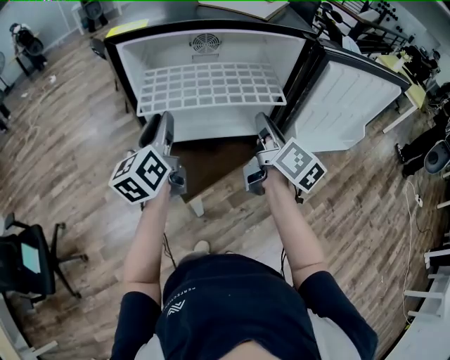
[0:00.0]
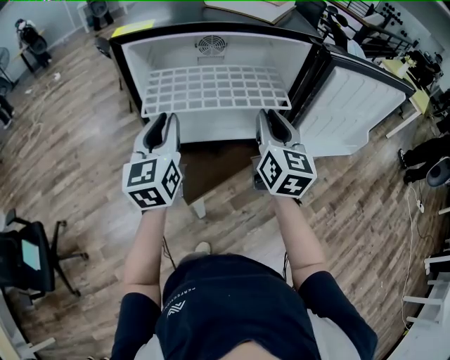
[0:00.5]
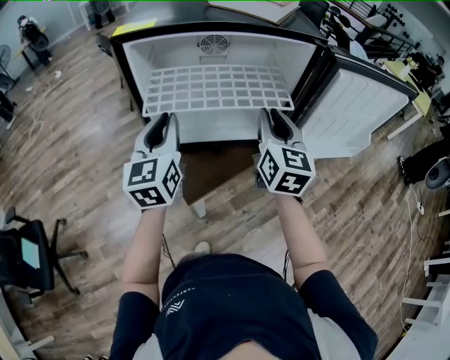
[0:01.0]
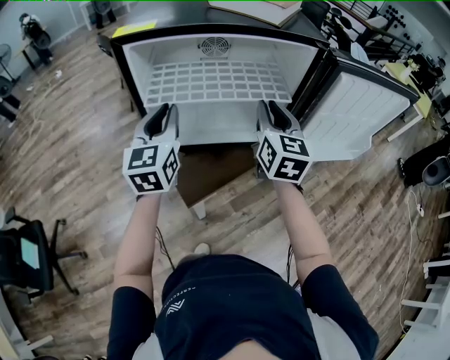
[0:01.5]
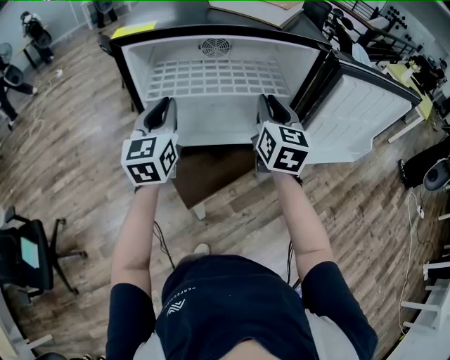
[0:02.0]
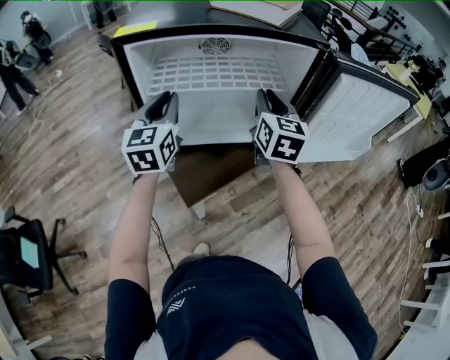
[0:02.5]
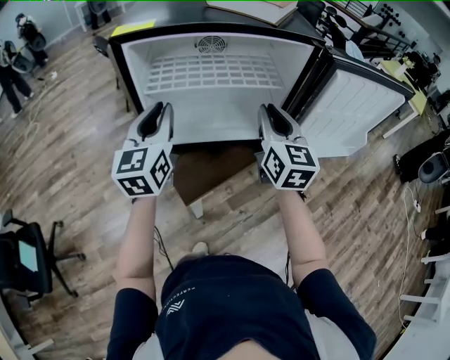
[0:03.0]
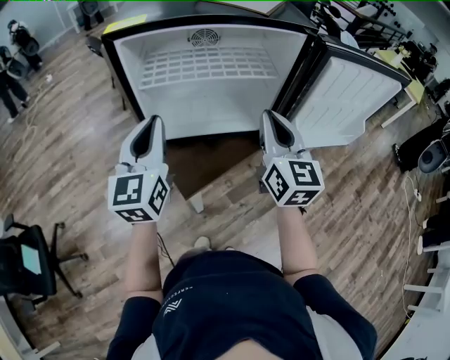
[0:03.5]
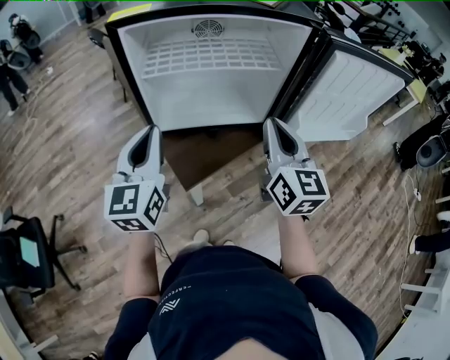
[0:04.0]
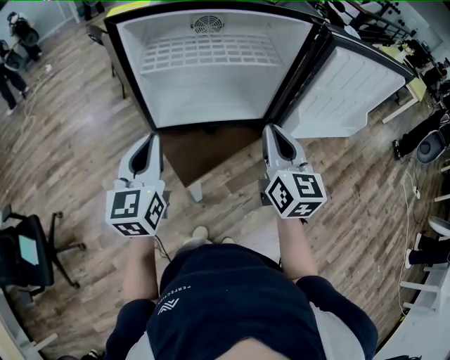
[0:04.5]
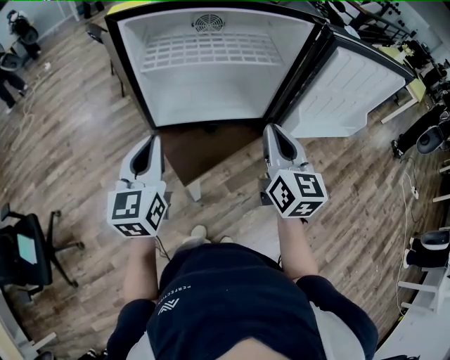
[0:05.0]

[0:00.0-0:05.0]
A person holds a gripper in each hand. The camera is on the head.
0:00.0 to 0:02.5: Both grippers travel together forward, approximately 10 cm. The right gripper rolls counterclockwise, seen from behind, by approximately 40 degrees. The left gripper swivels roughly 30 degrees.
0:02.5 to 0:05.0: The grippers both shift backward by some 15 cm.

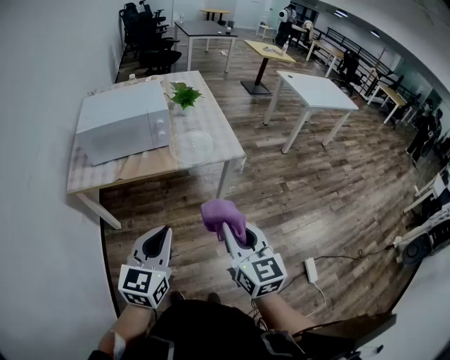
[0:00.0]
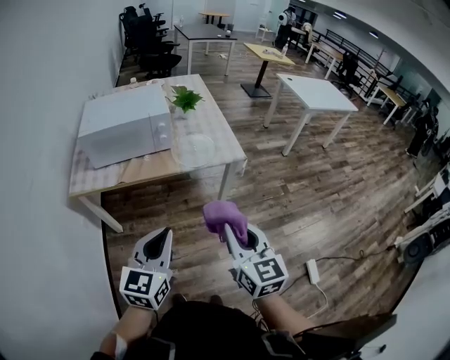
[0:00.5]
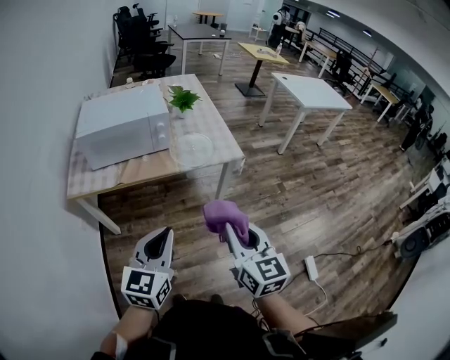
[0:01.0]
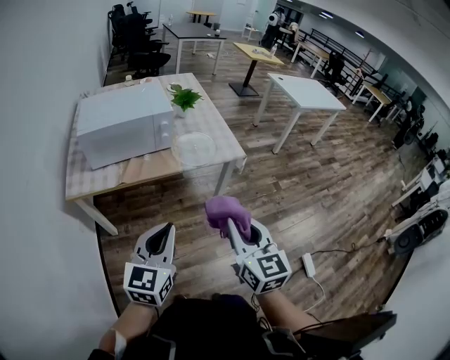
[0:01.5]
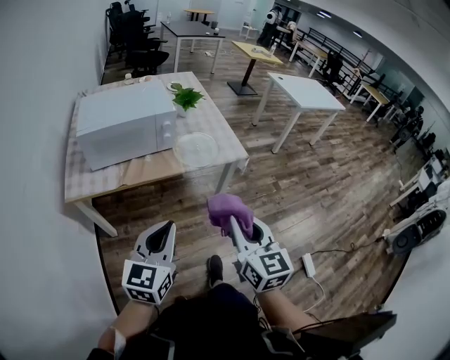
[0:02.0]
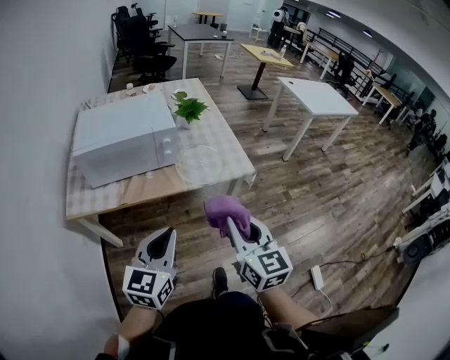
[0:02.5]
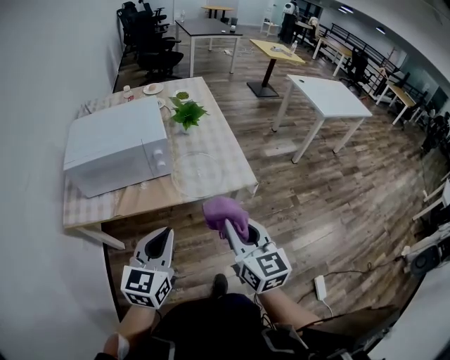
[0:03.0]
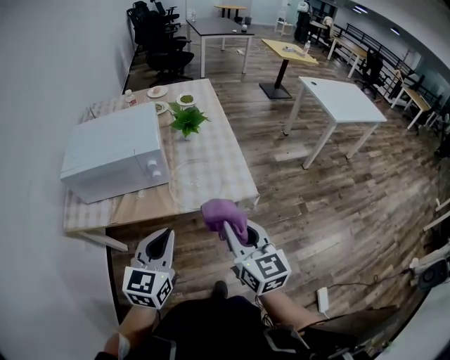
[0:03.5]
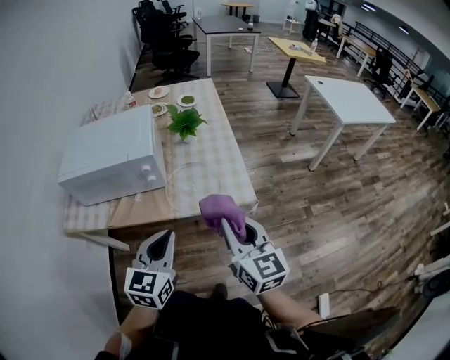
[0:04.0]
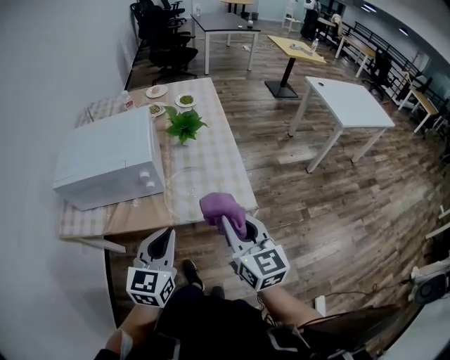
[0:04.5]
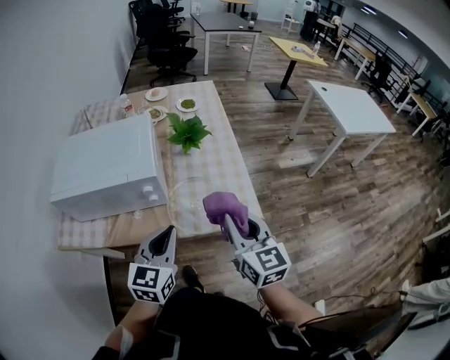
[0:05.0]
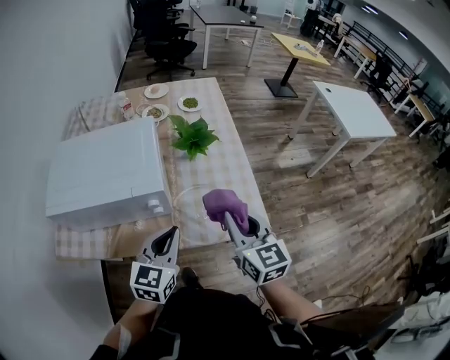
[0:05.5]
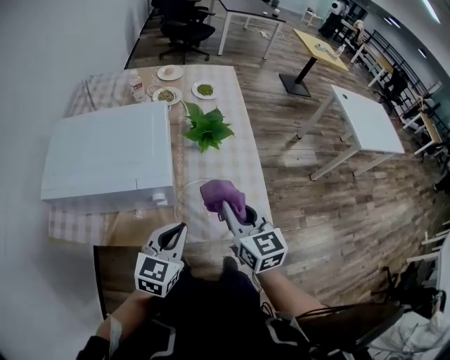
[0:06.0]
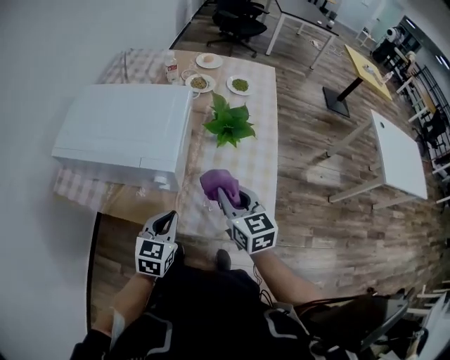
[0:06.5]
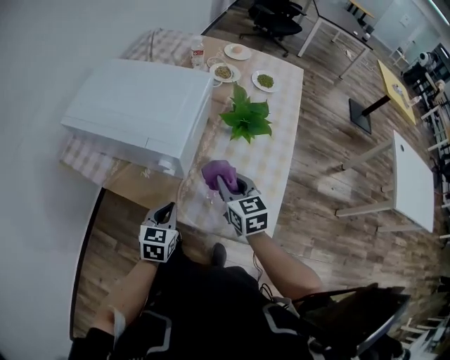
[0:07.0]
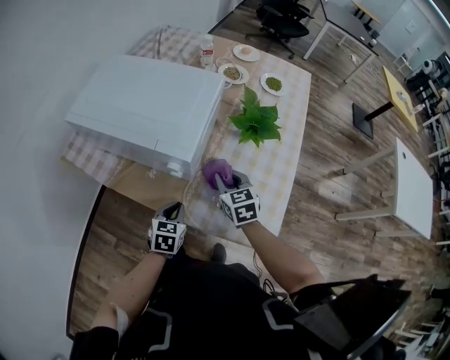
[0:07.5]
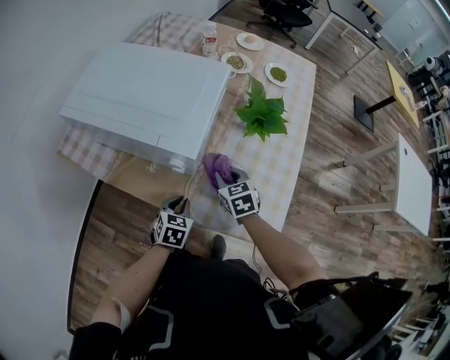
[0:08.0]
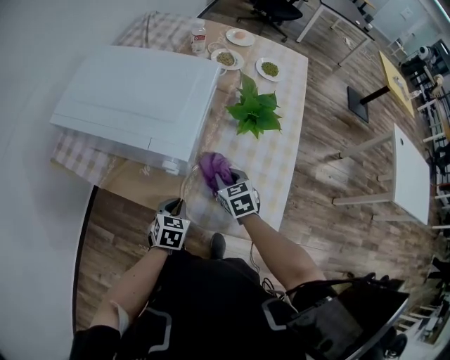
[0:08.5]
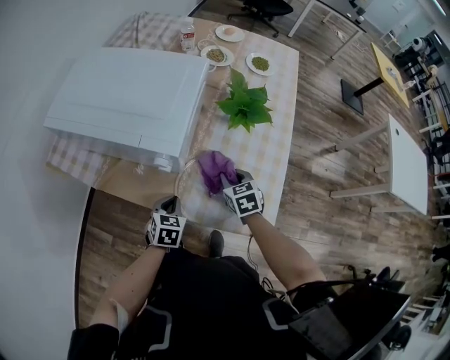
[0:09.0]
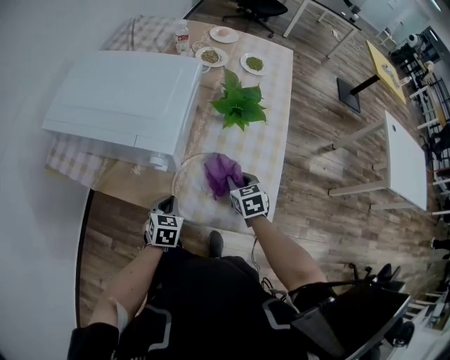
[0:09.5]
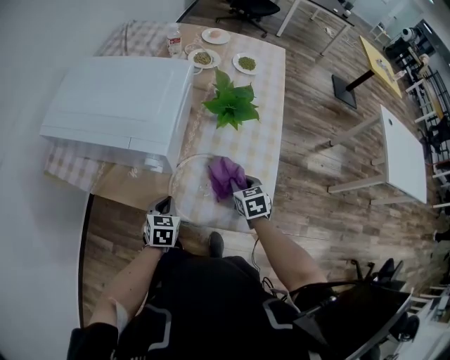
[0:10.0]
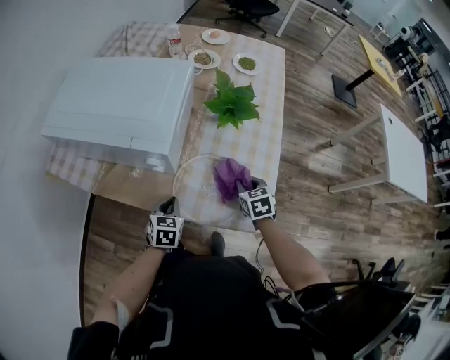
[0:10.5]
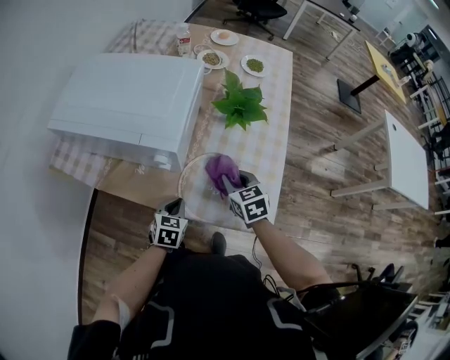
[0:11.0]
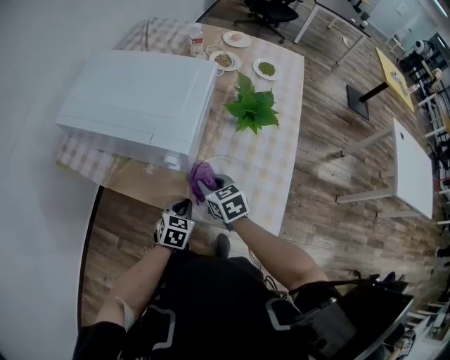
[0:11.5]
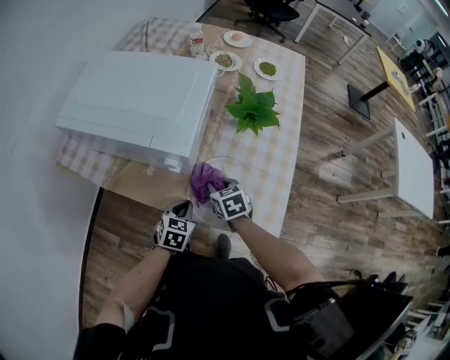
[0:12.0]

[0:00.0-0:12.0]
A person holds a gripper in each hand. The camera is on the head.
0:00.0 to 0:02.0: Both grippers move to the left, some 5 cm.
0:02.0 to 0:04.0: The grippers both shift forward and to the right by approximately 30 cm.
0:04.0 to 0:06.0: The right gripper shifts approximately 25 cm forward; the left gripper heads forward and downward, covering some 20 cm.
0:06.0 to 0:08.0: Both grippers move downward, about 20 cm. The left gripper turns by some 40 degrees, while the right gripper swivels approximately 40 degrees.
0:08.0 to 0:10.0: The right gripper moves to the right and backward, about 15 cm.
0:10.0 to 0:12.0: The right gripper goes some 15 cm to the left.

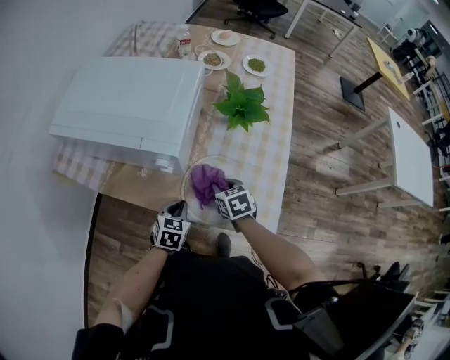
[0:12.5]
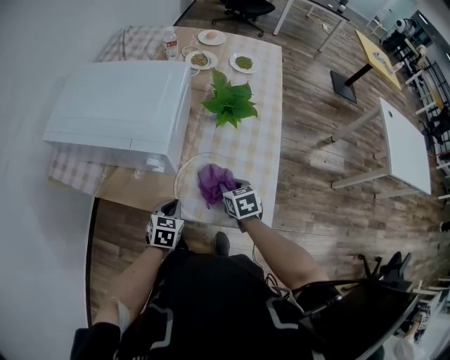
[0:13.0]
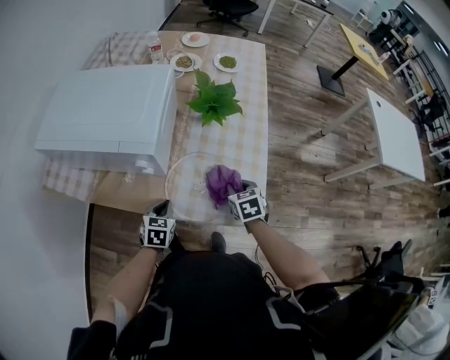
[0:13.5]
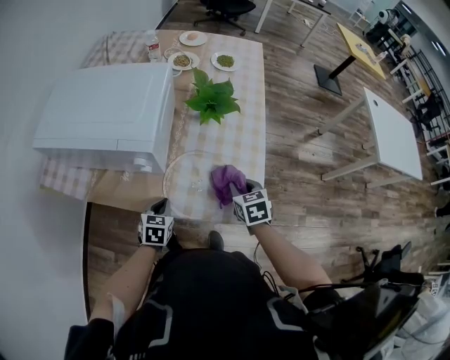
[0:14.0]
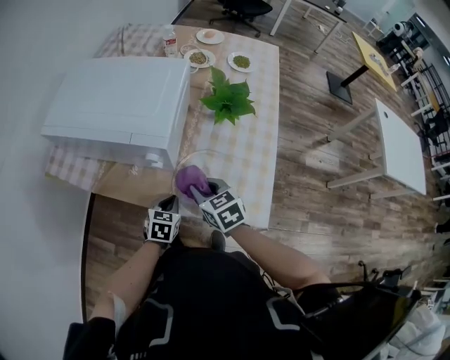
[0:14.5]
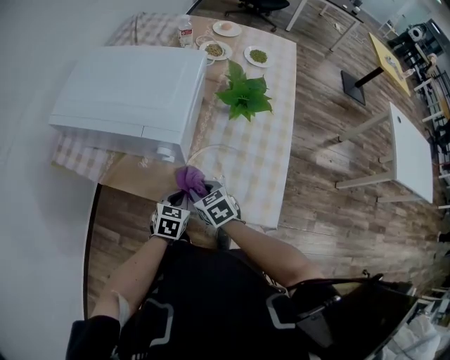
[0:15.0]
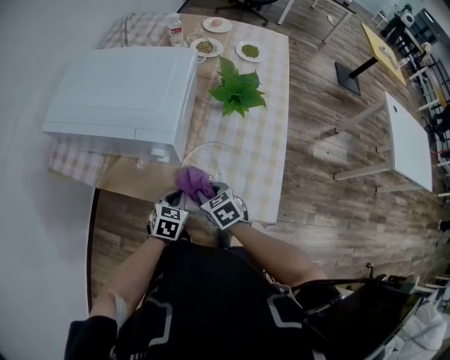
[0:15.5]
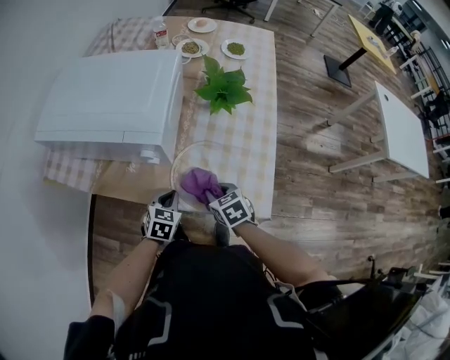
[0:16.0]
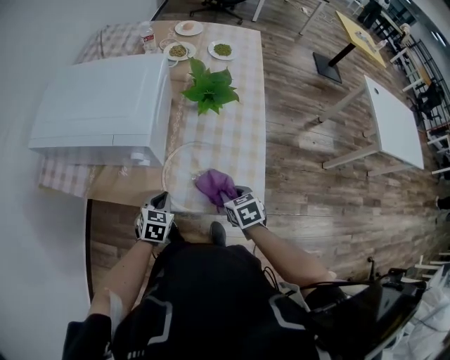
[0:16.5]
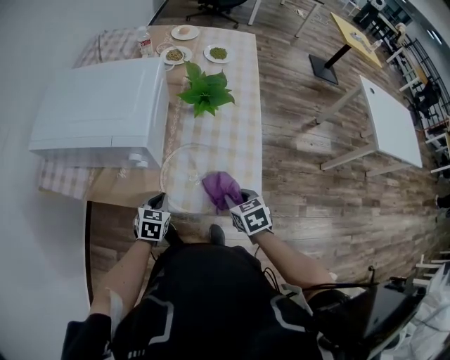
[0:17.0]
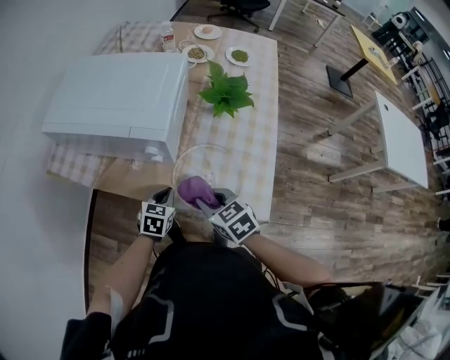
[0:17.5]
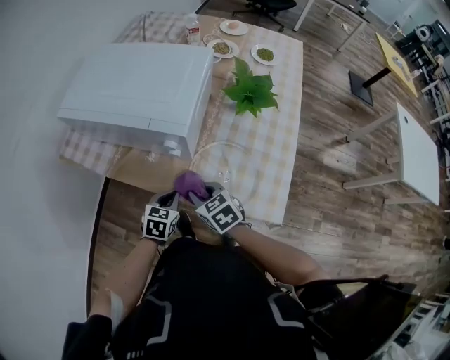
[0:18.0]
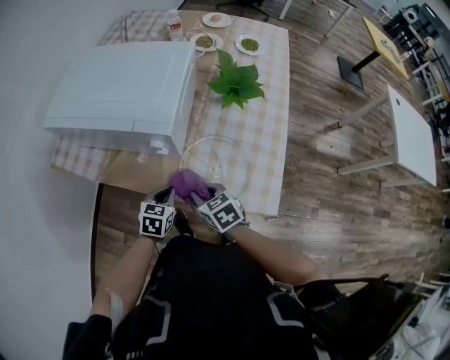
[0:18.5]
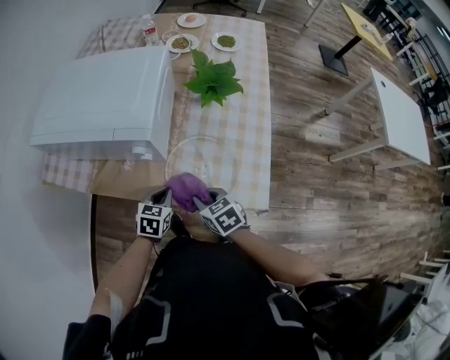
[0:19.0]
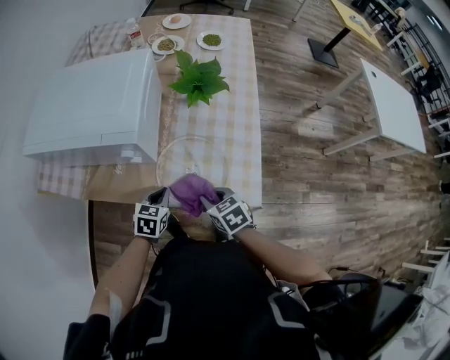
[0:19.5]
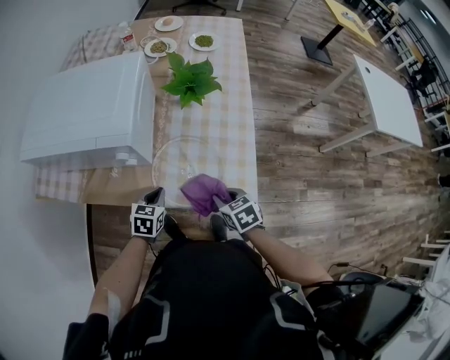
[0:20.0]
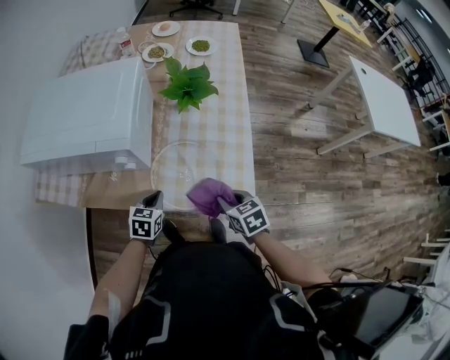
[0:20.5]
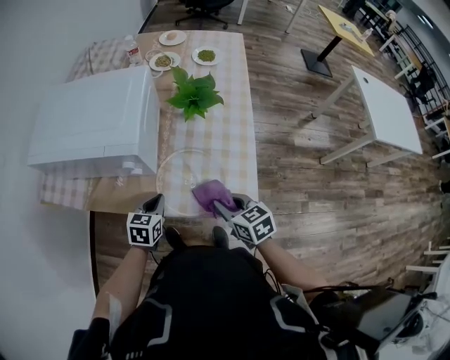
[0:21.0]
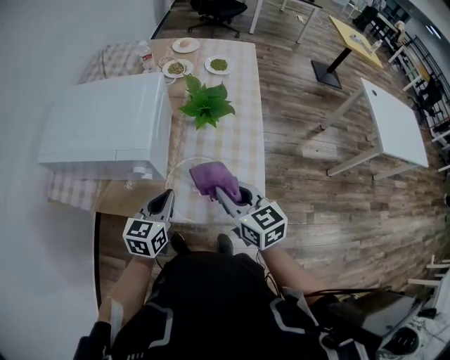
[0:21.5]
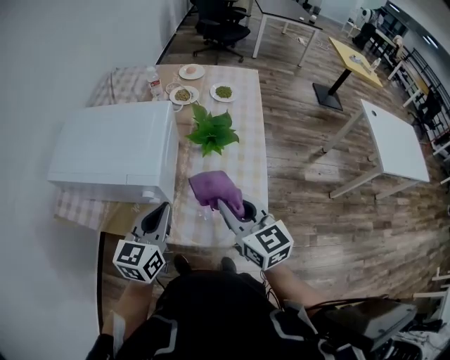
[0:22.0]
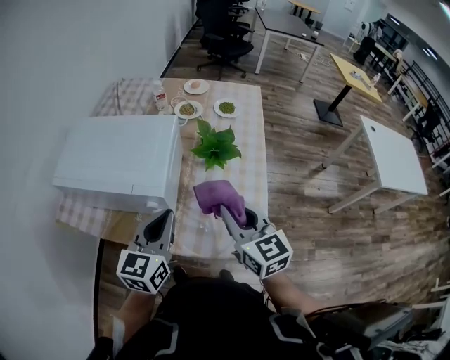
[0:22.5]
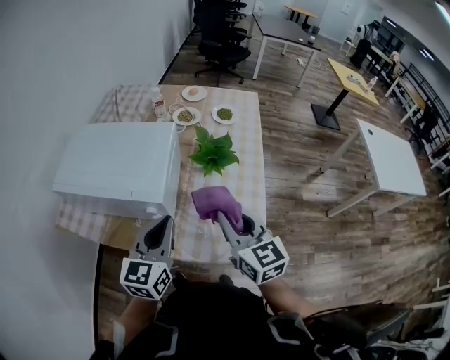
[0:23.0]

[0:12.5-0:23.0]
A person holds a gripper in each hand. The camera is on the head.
0:12.5 to 0:14.5: The right gripper is displaced upward by about 10 cm, and moves roughly 10 cm to the right and comes back.
0:14.5 to 0:16.5: The right gripper travels to the right, downward and backward by approximately 15 cm, and swivels approximately 20 degrees.
0:16.5 to 0:19.0: The right gripper moves to the left, about 10 cm.
0:19.0 to 0:21.0: The right gripper moves to the right and upward, roughly 10 cm.
0:21.0 to 0:23.0: Both grippers travel together upward, approximately 25 cm. The right gripper turns by about 30 degrees, while the left gripper angles its fingers upward, by some 30 degrees.
